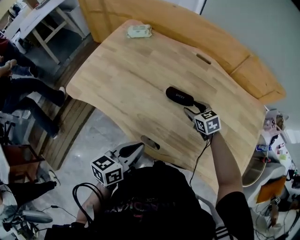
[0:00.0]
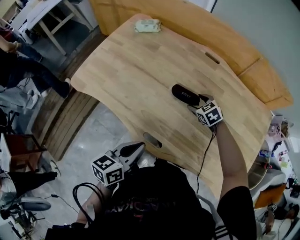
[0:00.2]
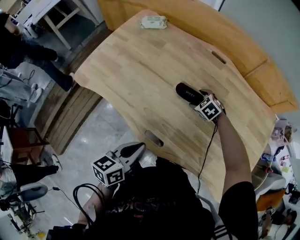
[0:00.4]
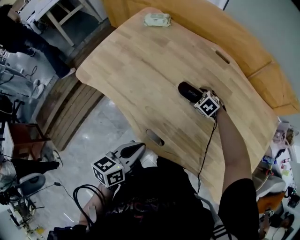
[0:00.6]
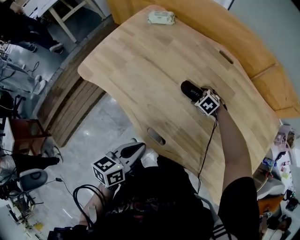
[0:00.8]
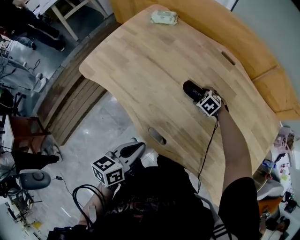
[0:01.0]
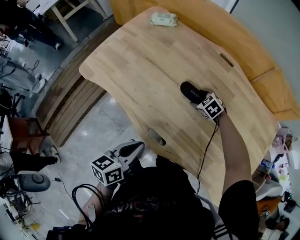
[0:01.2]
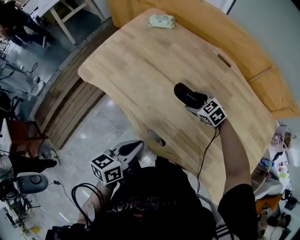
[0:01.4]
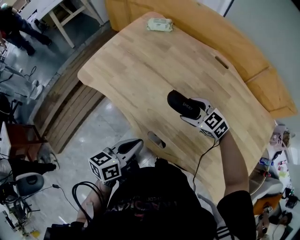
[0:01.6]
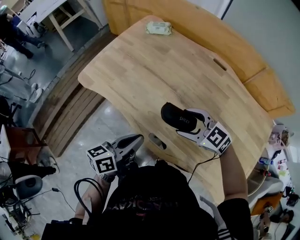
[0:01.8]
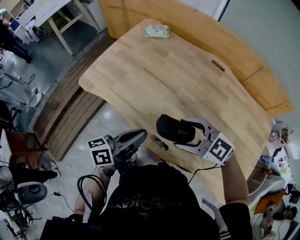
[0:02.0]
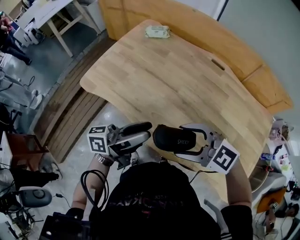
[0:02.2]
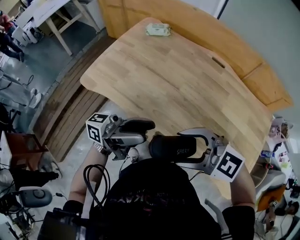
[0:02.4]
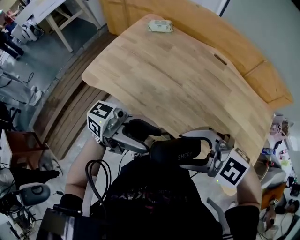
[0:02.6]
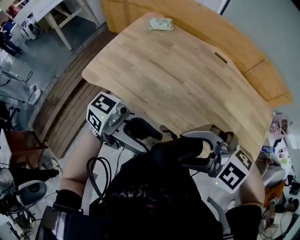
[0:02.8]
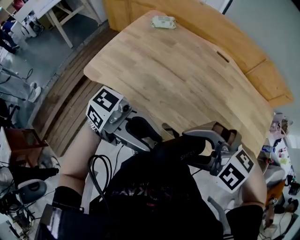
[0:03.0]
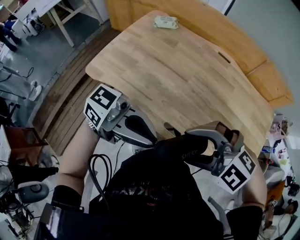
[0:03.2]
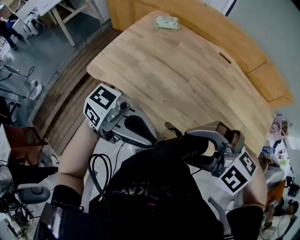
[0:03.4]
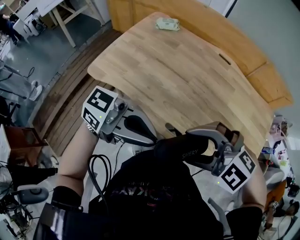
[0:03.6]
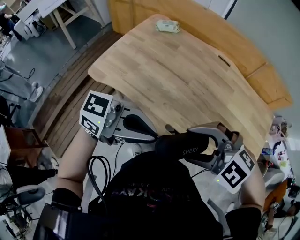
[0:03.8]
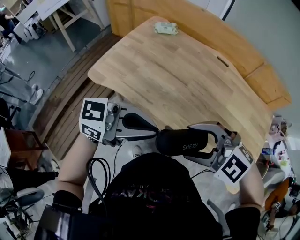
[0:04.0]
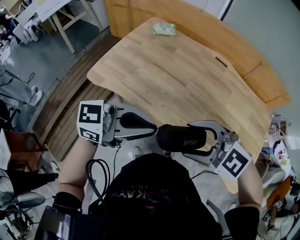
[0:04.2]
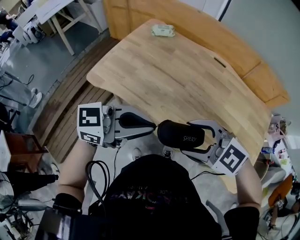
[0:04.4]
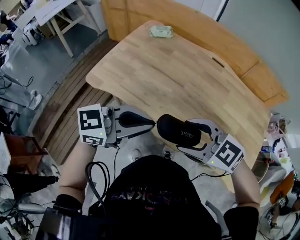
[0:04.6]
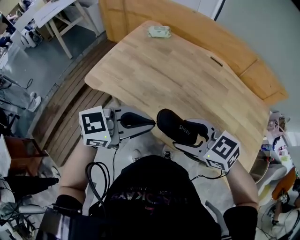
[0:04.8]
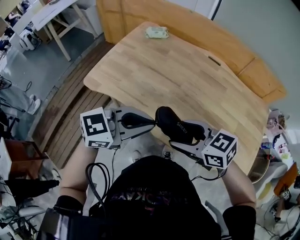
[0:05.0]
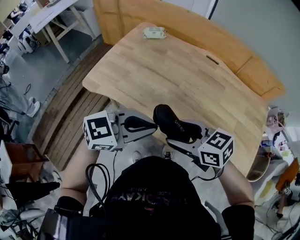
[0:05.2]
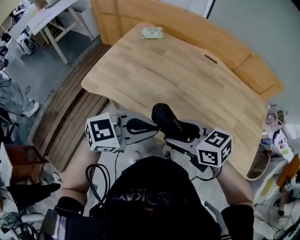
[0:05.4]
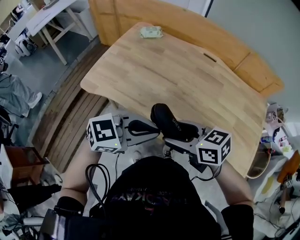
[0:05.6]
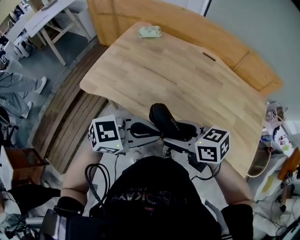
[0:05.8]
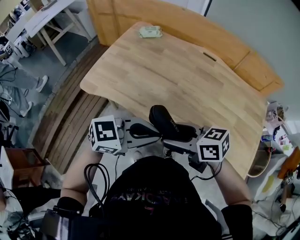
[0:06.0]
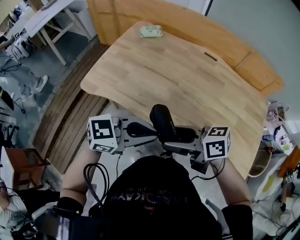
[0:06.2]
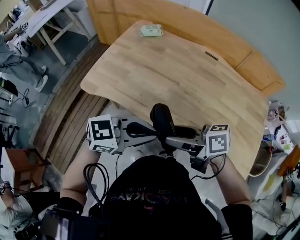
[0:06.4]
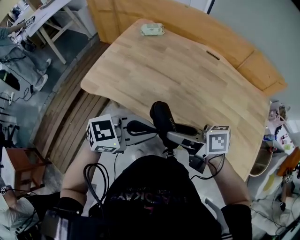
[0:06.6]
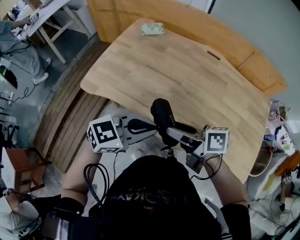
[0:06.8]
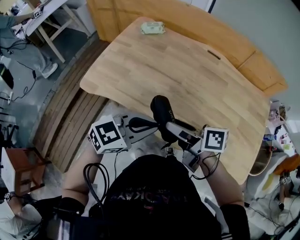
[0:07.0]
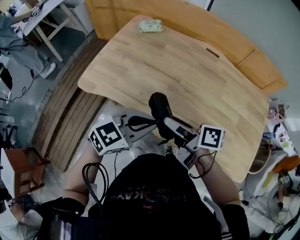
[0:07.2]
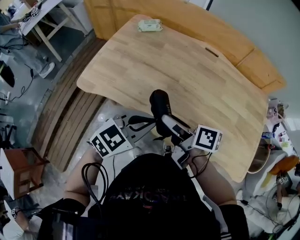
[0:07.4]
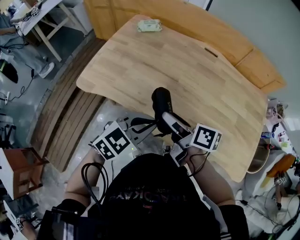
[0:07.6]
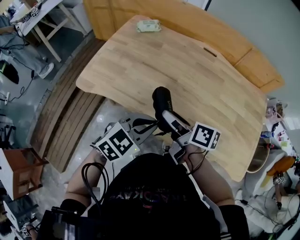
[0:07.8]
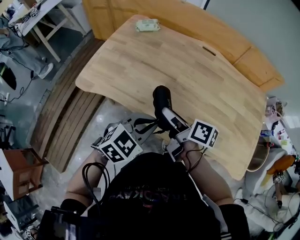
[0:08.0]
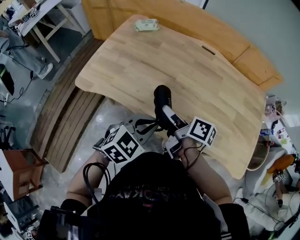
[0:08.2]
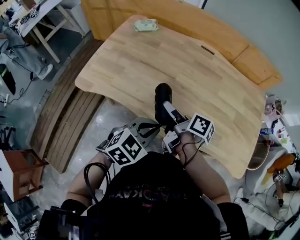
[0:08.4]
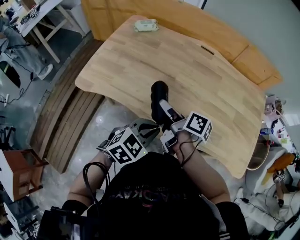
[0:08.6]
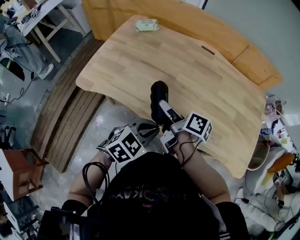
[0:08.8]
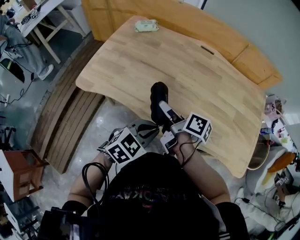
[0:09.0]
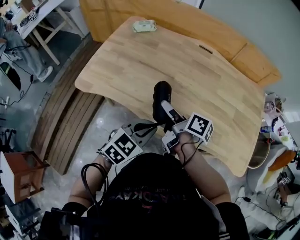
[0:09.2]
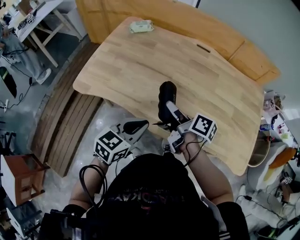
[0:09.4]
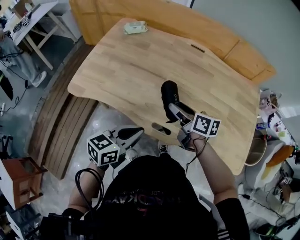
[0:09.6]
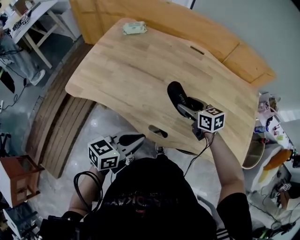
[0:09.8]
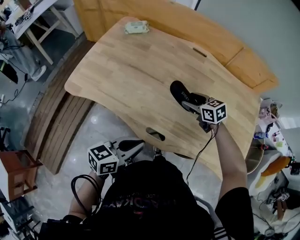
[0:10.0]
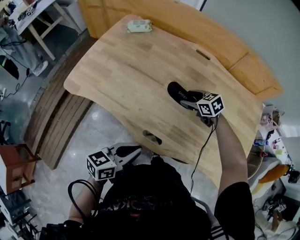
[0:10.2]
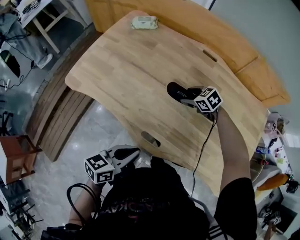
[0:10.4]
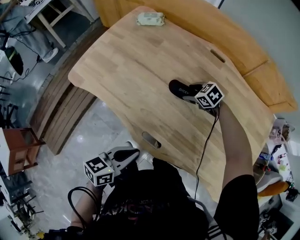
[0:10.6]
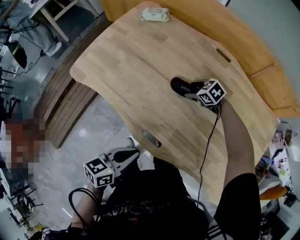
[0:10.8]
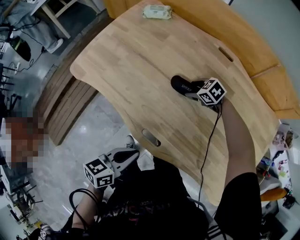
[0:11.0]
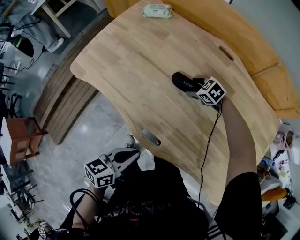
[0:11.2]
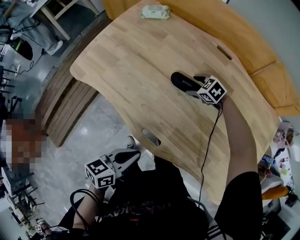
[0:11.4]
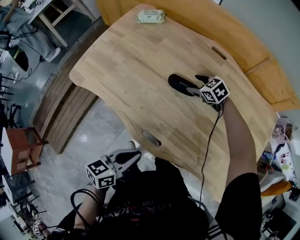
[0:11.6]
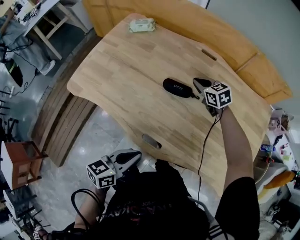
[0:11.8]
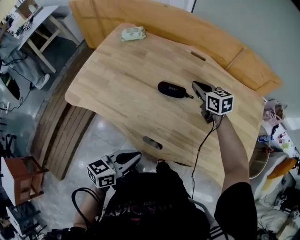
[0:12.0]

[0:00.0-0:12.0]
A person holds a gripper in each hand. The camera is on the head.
0.0 to 1.6 s: The right gripper shifts approximately 10 cm to the left, travels downward and back again, approximately 10 cm each way, and swivels some 40 degrees.
1.6 to 3.0 s: The right gripper moves some 30 cm, and rotates approximately 40 degrees, while the left gripper is displaced upward by approximately 15 cm, points its fingers about 30 degrees further upward, and opens its fingers.
3.0 to 4.4 s: The right gripper changes its angle by some 20 degrees. Meanwhile the left gripper turns by roughly 40 degrees, and closes its fingers.
4.4 to 6.0 s: The left gripper shifts roughly 5 cm downward; the right gripper ends up approximately 5 cm from where it was, and rolls clockwise, seen from behind, by approximately 50 degrees.
6.0 to 7.6 s: The right gripper shifts by about 10 cm, and turns by roughly 40 degrees. Meanwhile the left gripper ends up about 10 cm from where it was, and changes its angle by roughly 30 degrees.
7.6 to 9.0 s: The left gripper travels downward by some 5 cm.
9.0 to 10.4 s: The right gripper heads forward, downward and to the right, covering some 30 cm, and rotates around the line of its fingers by approximately 80 degrees, counterclockwise from behind. Meanwhile the left gripper twists some 40 degrees counterclockwise, seen from behind.
10.4 to 12.0 s: The right gripper travels upward by about 15 cm, swivels about 40 degrees, and closes its fingers.

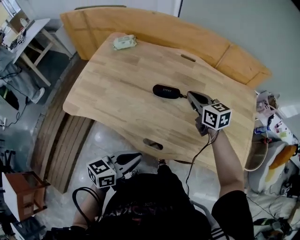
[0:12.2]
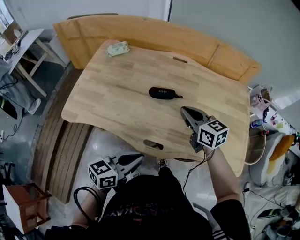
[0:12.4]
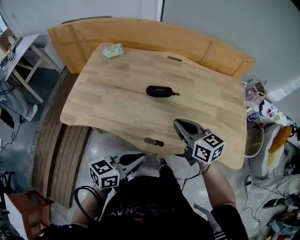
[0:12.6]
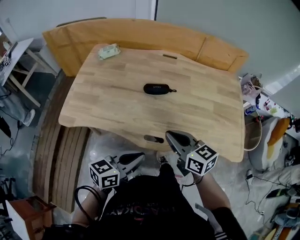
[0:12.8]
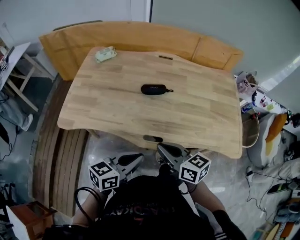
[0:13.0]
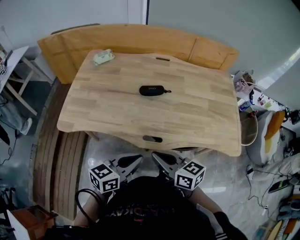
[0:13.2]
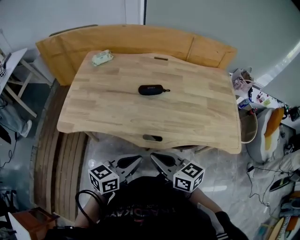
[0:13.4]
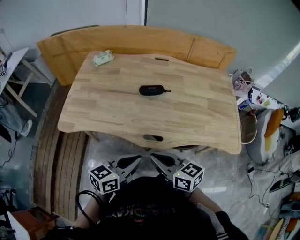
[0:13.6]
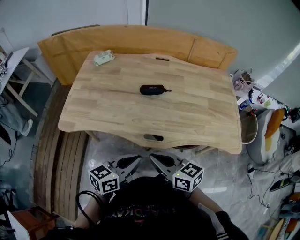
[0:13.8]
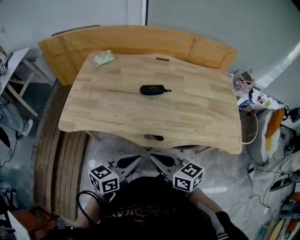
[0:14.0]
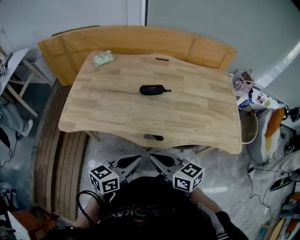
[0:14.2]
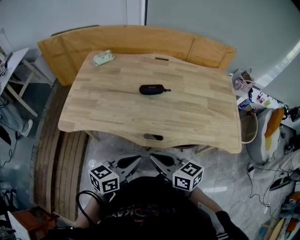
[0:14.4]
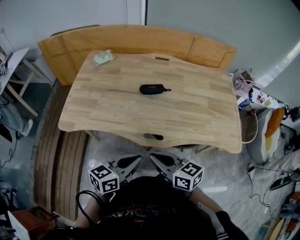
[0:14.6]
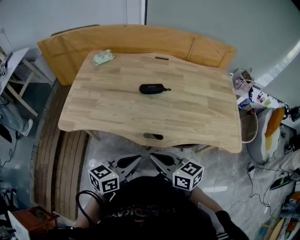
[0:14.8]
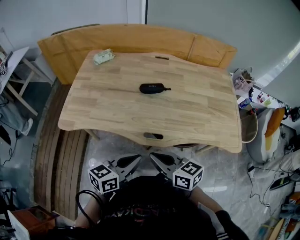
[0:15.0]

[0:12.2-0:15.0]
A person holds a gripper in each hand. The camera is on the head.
12.2 to 13.6 s: The right gripper moves backward, roughly 35 cm; the left gripper shifts about 5 cm backward.
13.6 to 15.0 s: Both grippers stay about where they are.

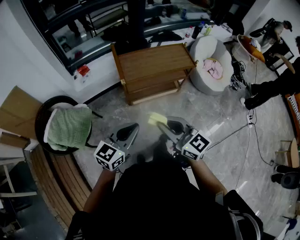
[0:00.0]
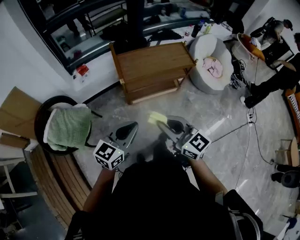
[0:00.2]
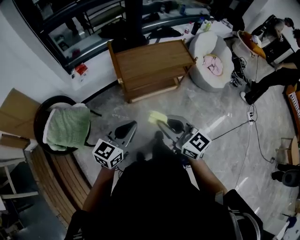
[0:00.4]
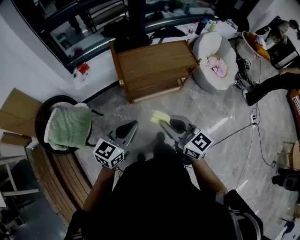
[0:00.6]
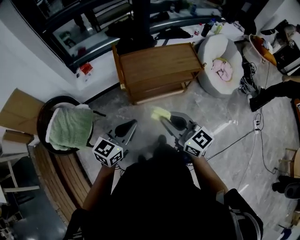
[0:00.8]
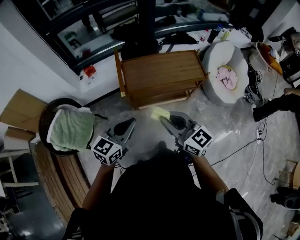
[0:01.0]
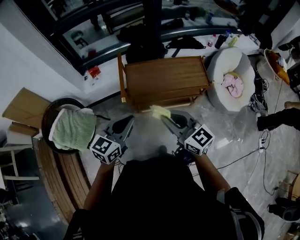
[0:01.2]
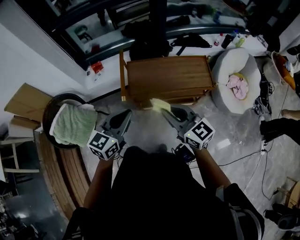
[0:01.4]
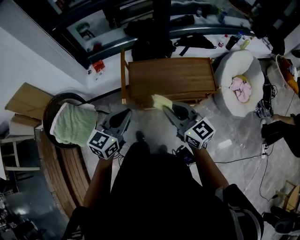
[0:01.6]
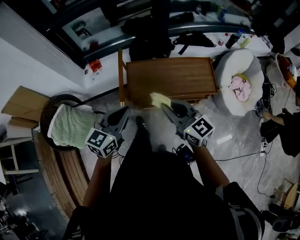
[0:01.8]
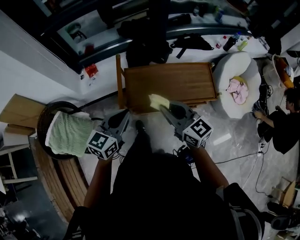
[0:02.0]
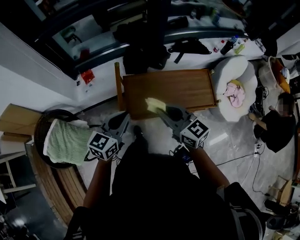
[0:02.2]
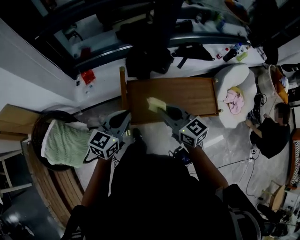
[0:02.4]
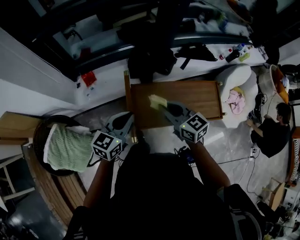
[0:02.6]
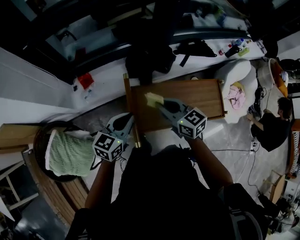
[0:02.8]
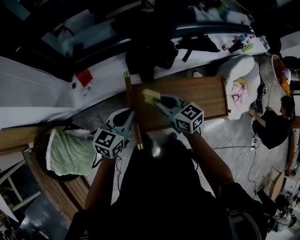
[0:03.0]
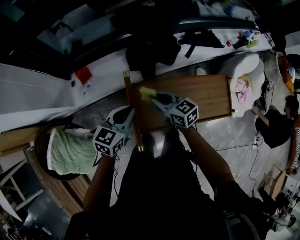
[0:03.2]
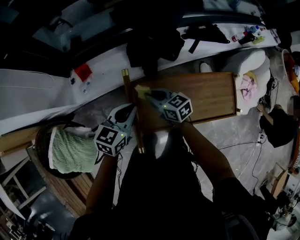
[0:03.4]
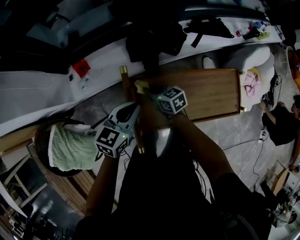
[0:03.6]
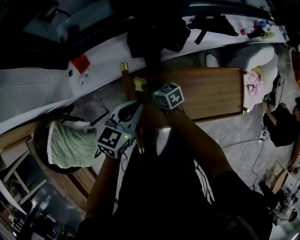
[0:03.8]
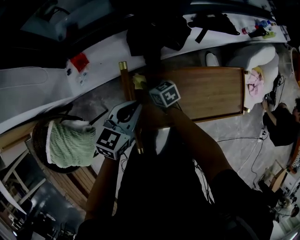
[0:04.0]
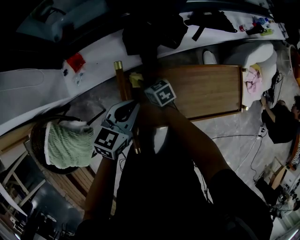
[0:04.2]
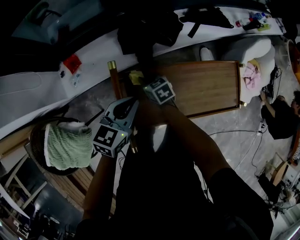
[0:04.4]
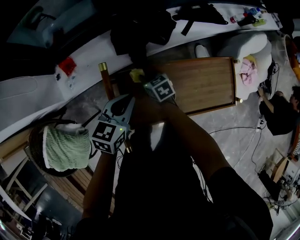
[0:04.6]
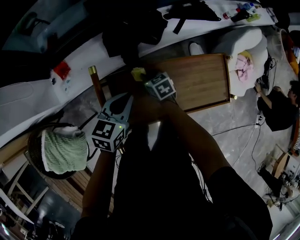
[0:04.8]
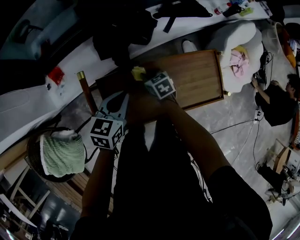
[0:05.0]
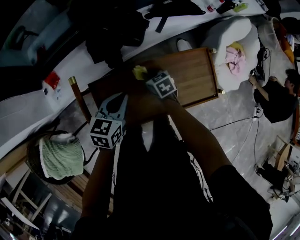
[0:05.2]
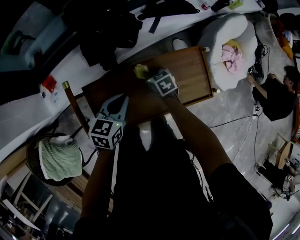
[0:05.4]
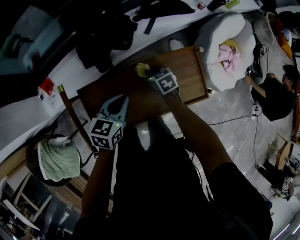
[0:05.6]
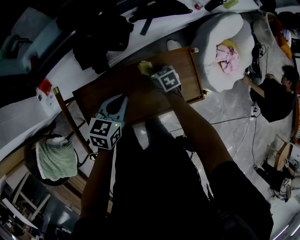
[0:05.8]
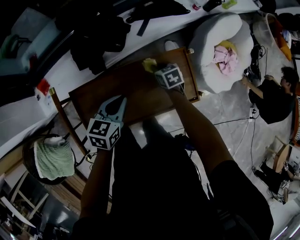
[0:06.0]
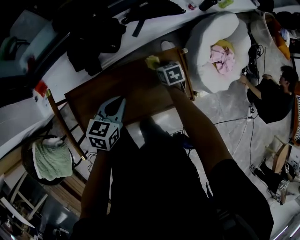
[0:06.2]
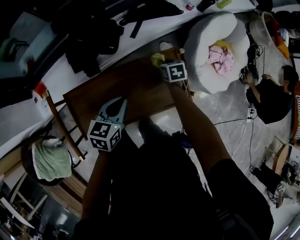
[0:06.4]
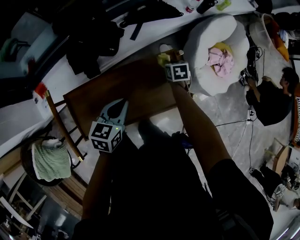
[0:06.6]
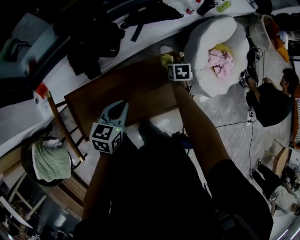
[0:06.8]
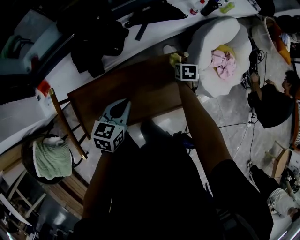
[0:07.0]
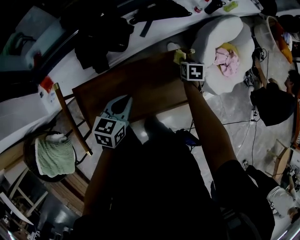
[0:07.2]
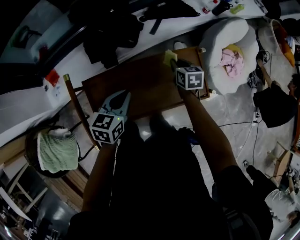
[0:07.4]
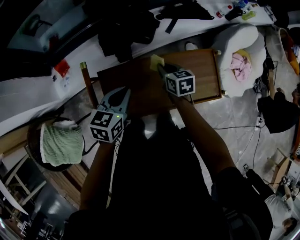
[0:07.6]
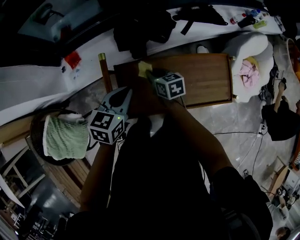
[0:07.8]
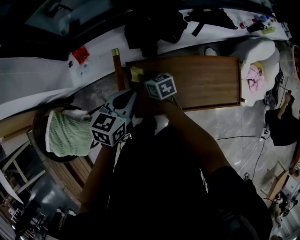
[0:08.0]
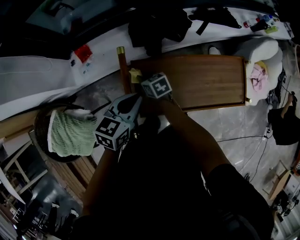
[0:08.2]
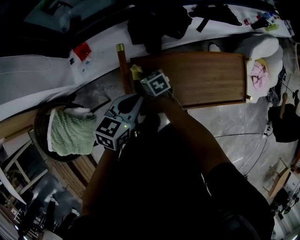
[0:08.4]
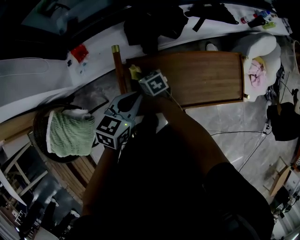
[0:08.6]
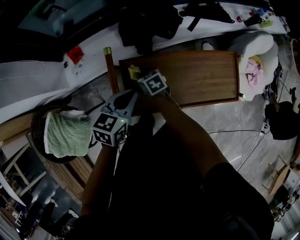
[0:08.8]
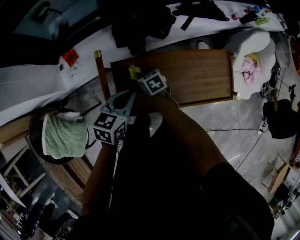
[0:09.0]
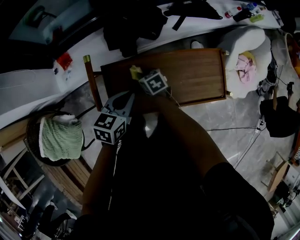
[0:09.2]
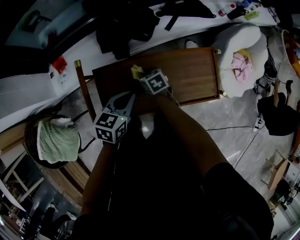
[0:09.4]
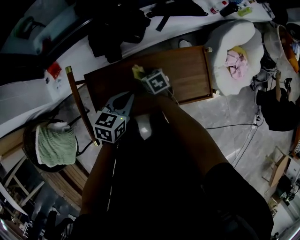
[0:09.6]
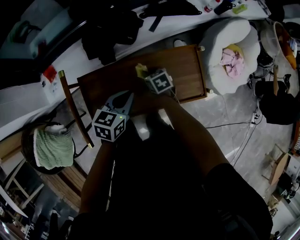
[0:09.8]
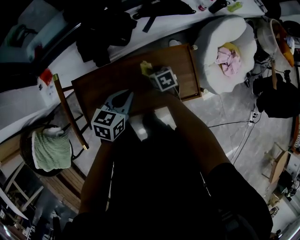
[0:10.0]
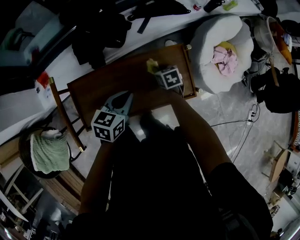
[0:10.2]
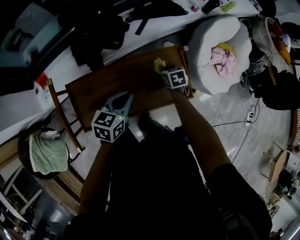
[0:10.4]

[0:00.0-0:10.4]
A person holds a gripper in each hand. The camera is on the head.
0.0 to 1.4 s: The two grippers go some 25 cm forward.
1.4 to 3.0 s: The two grippers go roughly 35 cm forward. The right gripper turns by roughly 20 degrees.
3.0 to 4.4 s: The left gripper shifts roughly 10 cm downward and to the right; the right gripper travels downward by roughly 25 cm, and swivels about 20 degrees.
4.4 to 6.0 s: The left gripper heads to the right, covering roughly 25 cm, while the right gripper heads to the right, covering about 35 cm.
6.0 to 7.4 s: The left gripper shifts by approximately 5 cm. The right gripper moves upward, roughly 5 cm, and reaches some 15 cm to the right, then returns.
7.4 to 9.0 s: The left gripper goes approximately 15 cm to the left, while the right gripper heads to the left, covering roughly 35 cm, and changes its angle by roughly 30 degrees.
9.0 to 10.4 s: The left gripper heads to the right, covering some 25 cm. Meanwhile the right gripper heads to the right, covering about 40 cm, and rotates about 20 degrees.
